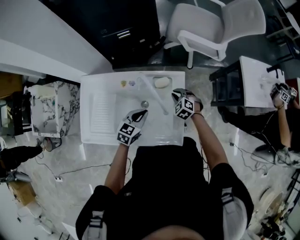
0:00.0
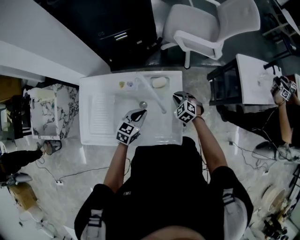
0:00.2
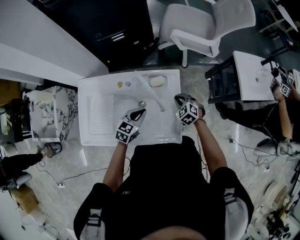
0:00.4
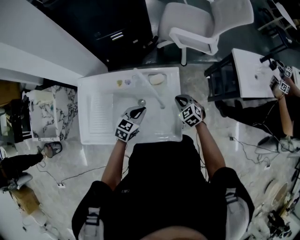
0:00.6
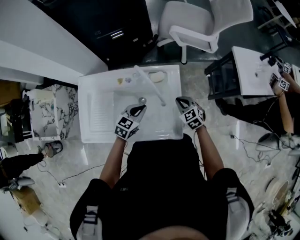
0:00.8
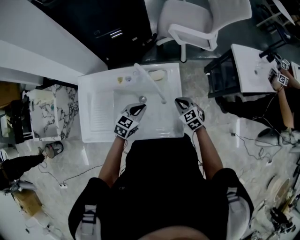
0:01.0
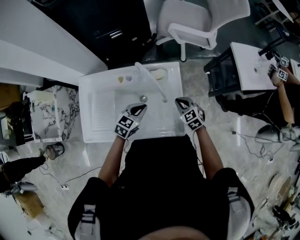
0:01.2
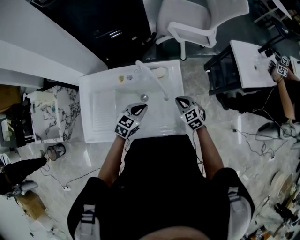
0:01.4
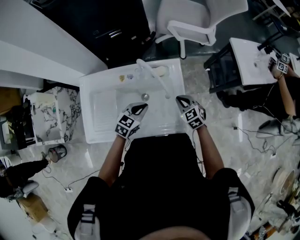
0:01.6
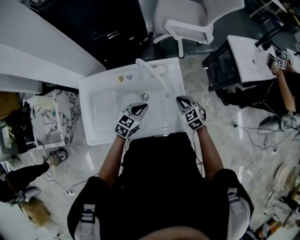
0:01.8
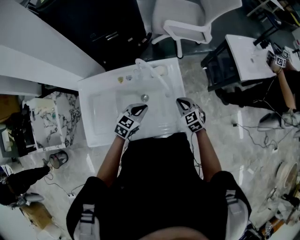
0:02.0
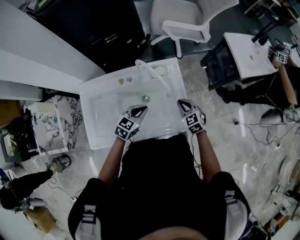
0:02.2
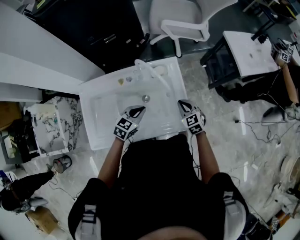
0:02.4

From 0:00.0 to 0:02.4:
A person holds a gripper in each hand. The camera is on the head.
From 0:00.0 to 0:01.2: The right gripper shifts about 10 cm backward and upward, and rotates approximately 30 degrees.
From 0:01.2 to 0:02.4: There are only small adjustments of the grippers.

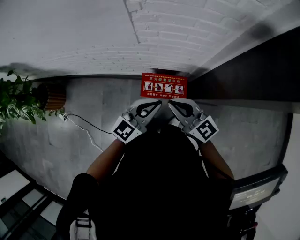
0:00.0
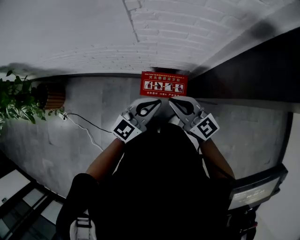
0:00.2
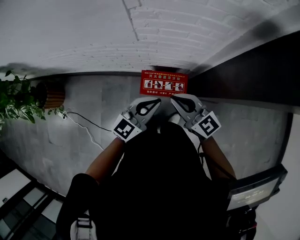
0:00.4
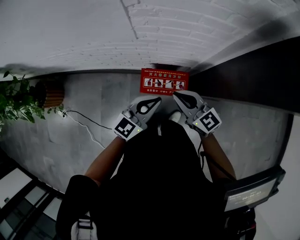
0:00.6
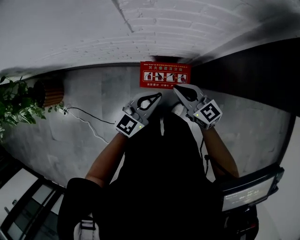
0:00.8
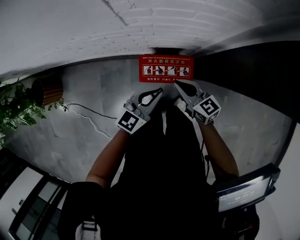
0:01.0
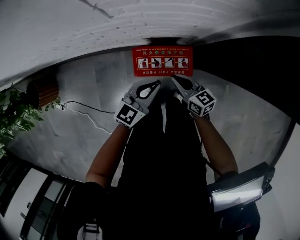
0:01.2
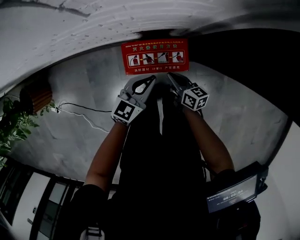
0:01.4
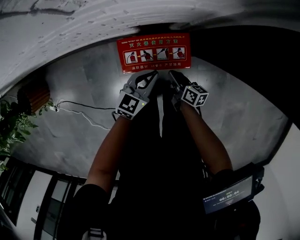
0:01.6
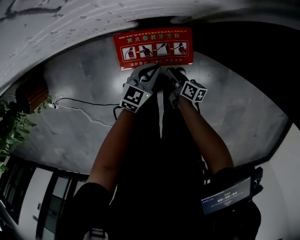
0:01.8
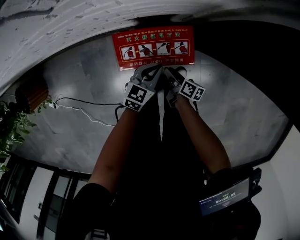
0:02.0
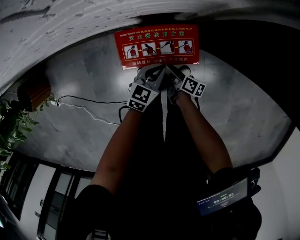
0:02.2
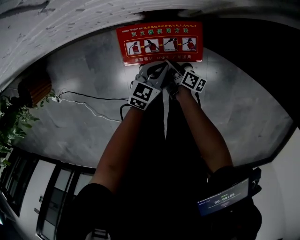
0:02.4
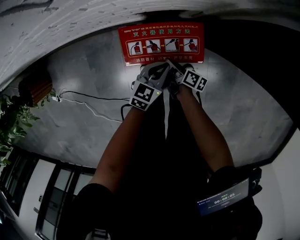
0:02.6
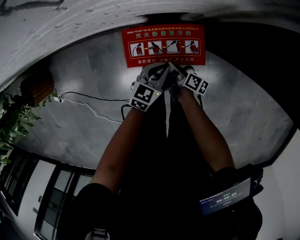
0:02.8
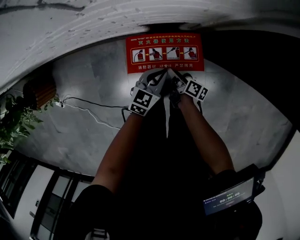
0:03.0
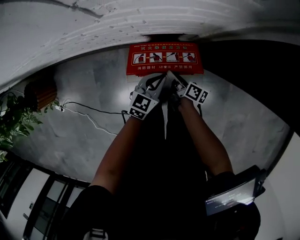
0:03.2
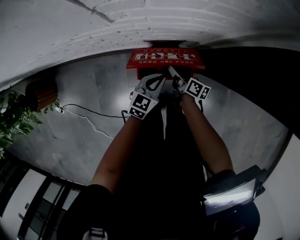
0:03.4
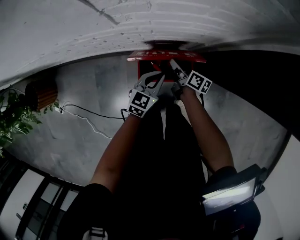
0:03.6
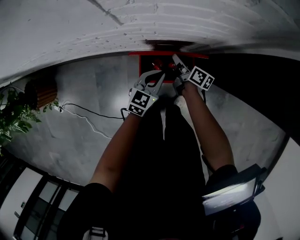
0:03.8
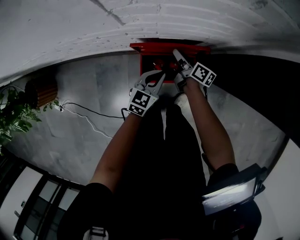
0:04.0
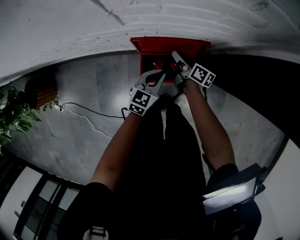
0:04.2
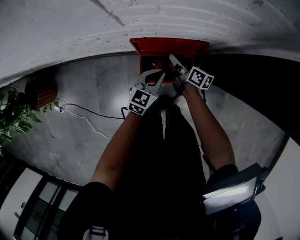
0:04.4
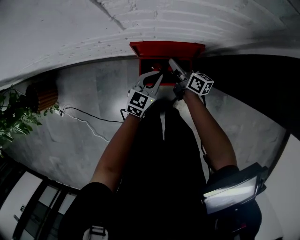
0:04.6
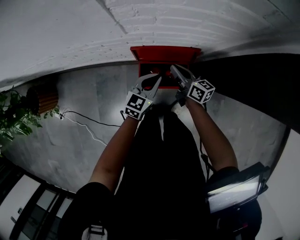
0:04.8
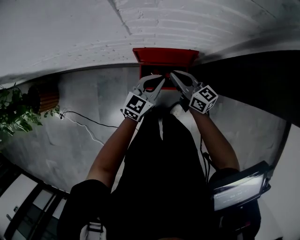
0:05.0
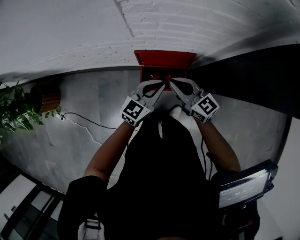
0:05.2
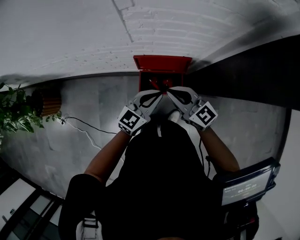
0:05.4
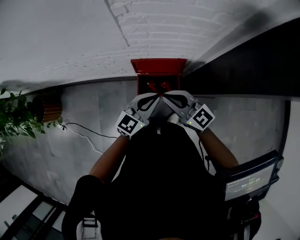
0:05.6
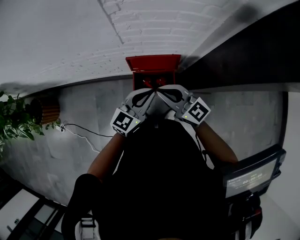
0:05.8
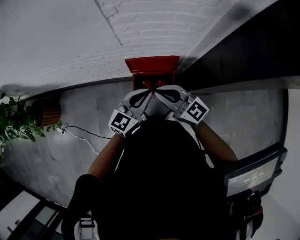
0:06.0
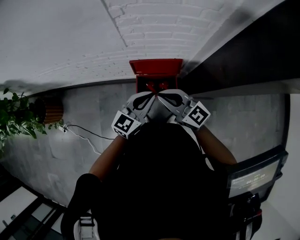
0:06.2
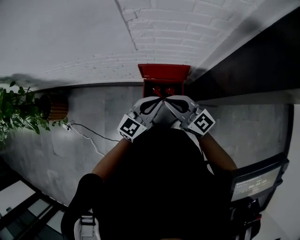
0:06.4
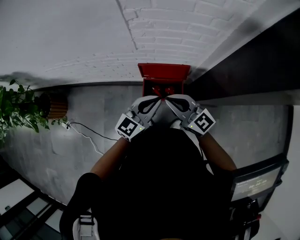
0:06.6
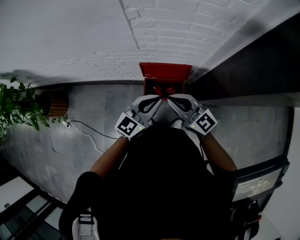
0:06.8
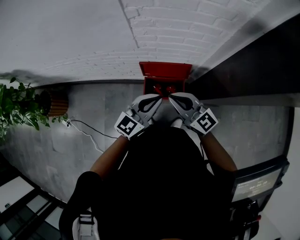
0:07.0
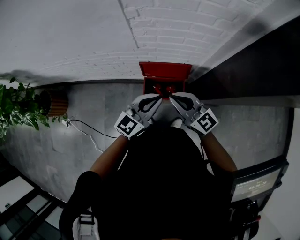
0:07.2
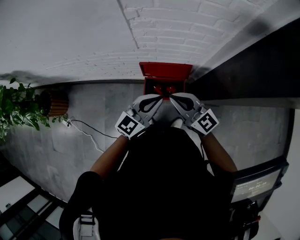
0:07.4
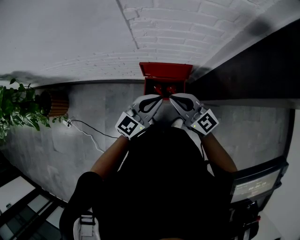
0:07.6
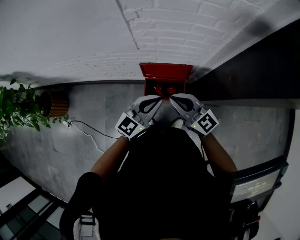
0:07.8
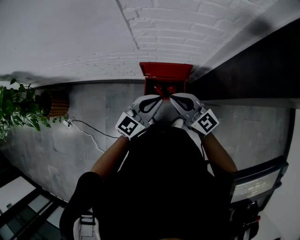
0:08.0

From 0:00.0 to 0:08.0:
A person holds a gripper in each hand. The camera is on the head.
From 0:00.0 to 0:01.6: Both grippers travel together downward, some 40 cm. The right gripper rolls clockwise, seen from behind, by some 60 degrees. Meanwhile the left gripper turns by roughly 20 degrees.
From 0:01.6 to 0:03.2: The right gripper goes downward and returns, approximately 10 cm each way, and opens. Meanwhile the left gripper goes downward and returns, roughly 10 cm each way.
From 0:03.2 to 0:04.8: The right gripper shifts approximately 20 cm upward and forward, rotates some 40 degrees, and closes, while the left gripper moves upward and forward, some 15 cm.
From 0:04.8 to 0:06.4: Both grippers travel together upward and backward, about 30 cm. The right gripper rolls counterclockwise, seen from behind, by some 40 degrees.
From 0:06.4 to 0:08.0: There are only small adjustments of the grippers.

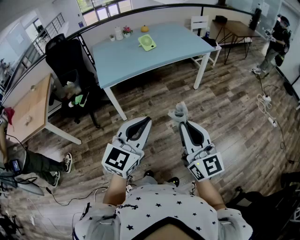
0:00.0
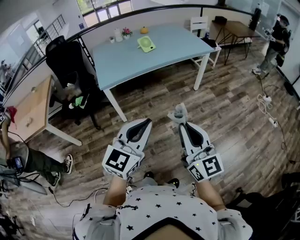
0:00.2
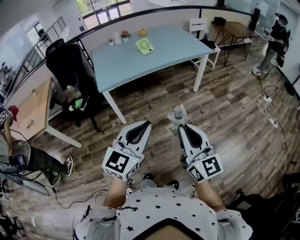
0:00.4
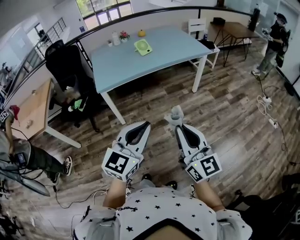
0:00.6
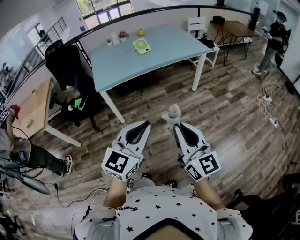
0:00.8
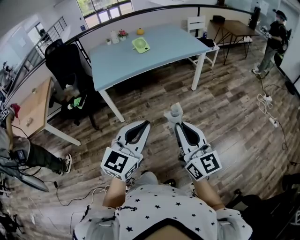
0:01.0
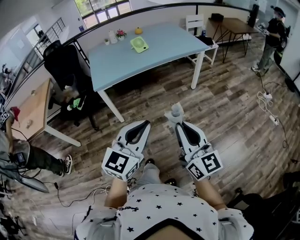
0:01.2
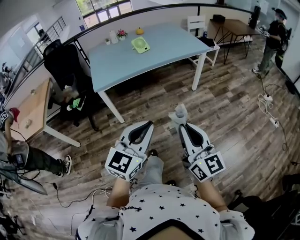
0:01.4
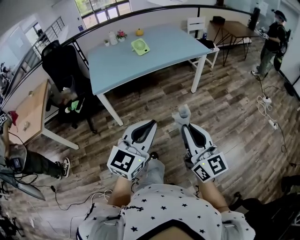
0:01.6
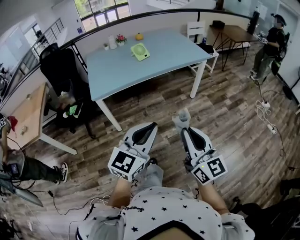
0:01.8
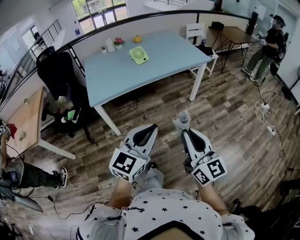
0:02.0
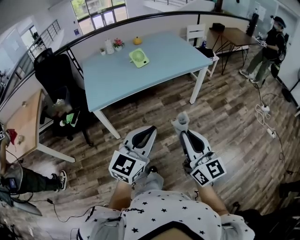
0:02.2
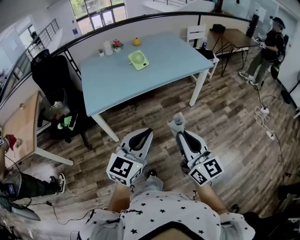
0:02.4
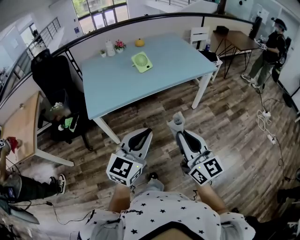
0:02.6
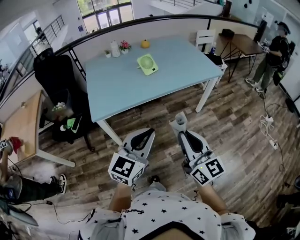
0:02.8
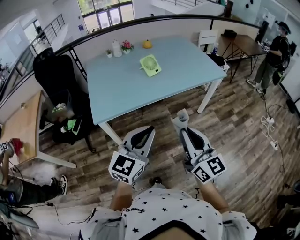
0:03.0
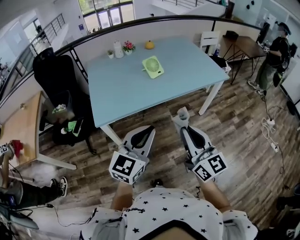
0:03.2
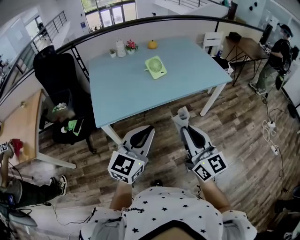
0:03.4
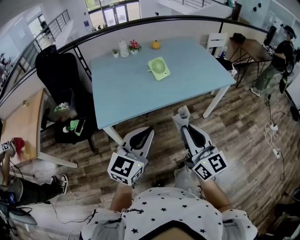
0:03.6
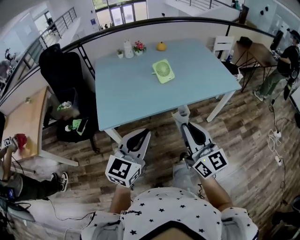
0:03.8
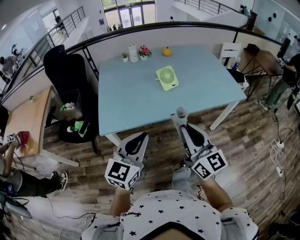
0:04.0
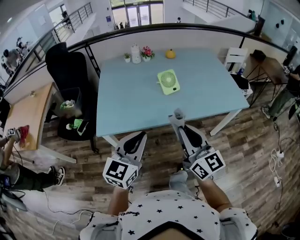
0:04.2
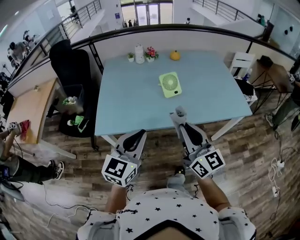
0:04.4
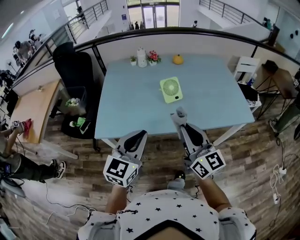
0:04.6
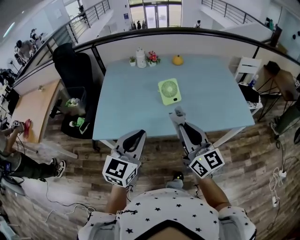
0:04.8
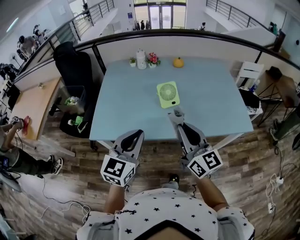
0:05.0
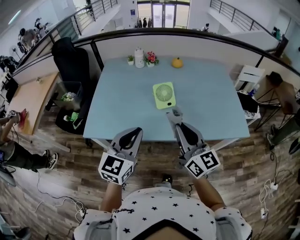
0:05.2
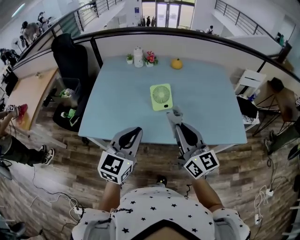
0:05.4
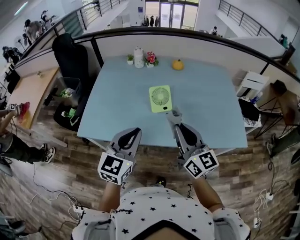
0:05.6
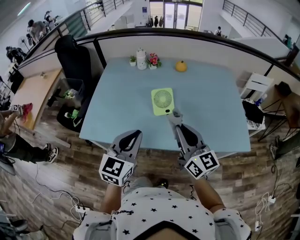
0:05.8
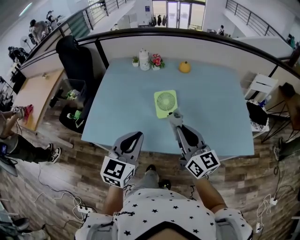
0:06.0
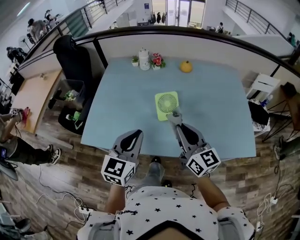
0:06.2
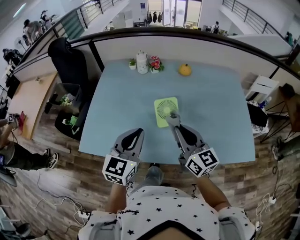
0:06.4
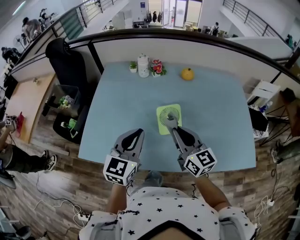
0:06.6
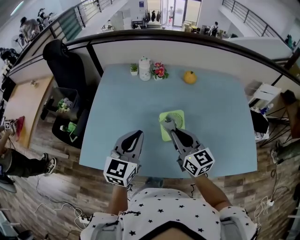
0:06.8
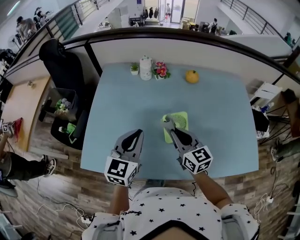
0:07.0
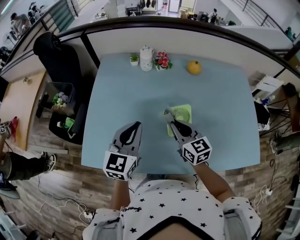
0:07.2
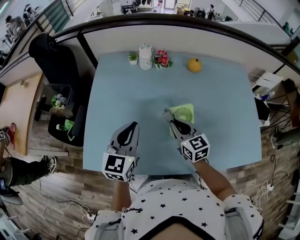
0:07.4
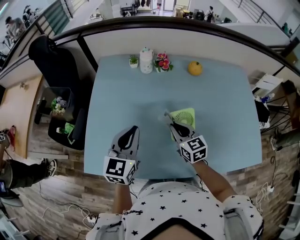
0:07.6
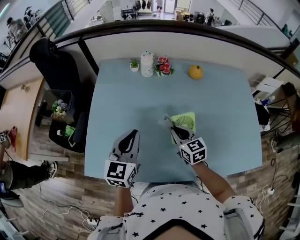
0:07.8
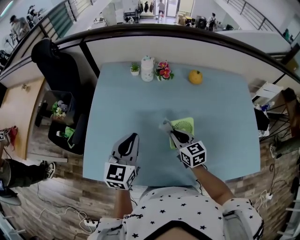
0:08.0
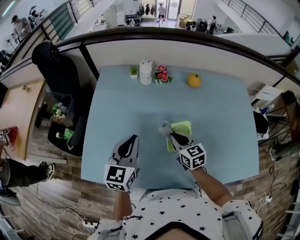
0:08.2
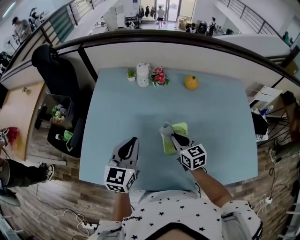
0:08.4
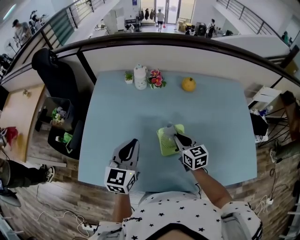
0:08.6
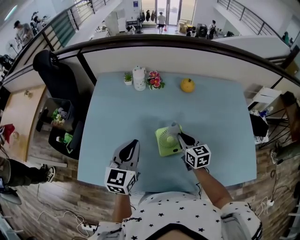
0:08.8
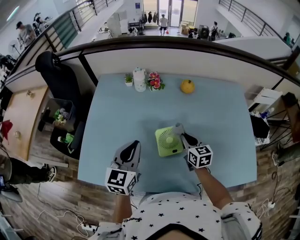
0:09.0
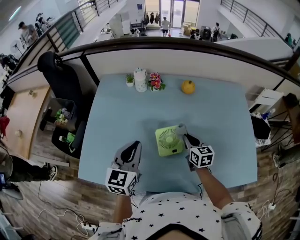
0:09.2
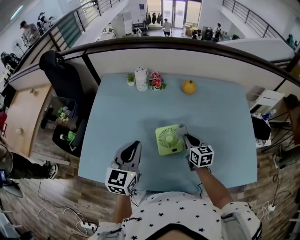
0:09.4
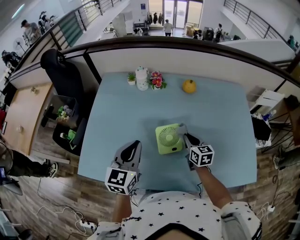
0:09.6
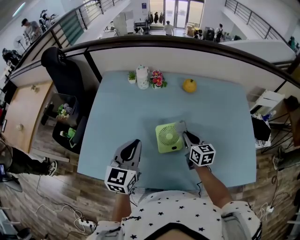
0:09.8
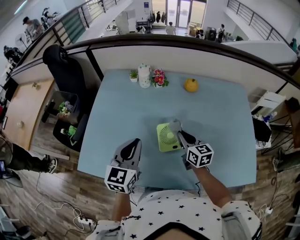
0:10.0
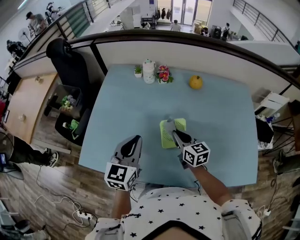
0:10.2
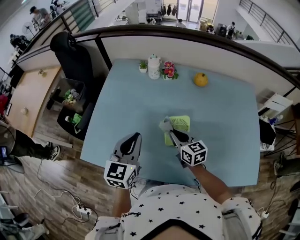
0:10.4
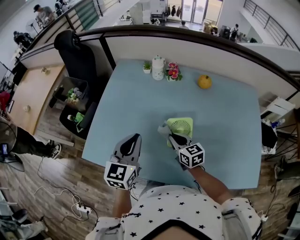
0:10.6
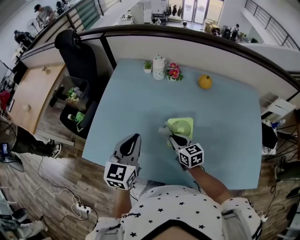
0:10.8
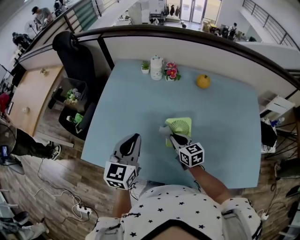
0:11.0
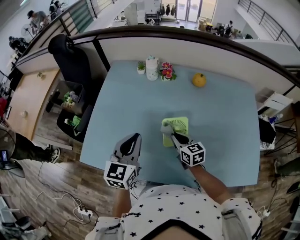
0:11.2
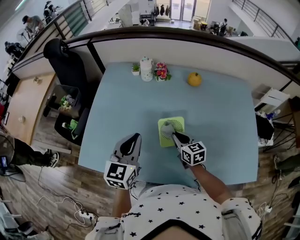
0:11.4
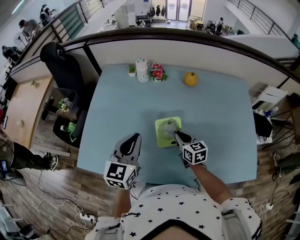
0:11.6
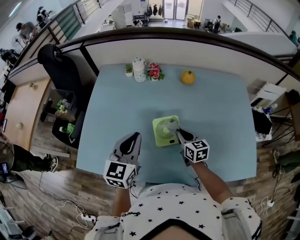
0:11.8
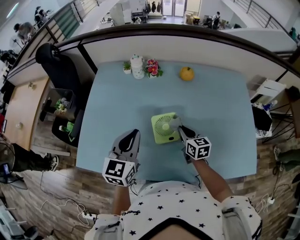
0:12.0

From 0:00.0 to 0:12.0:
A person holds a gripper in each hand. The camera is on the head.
From 0:00.0 to 0:01.6: Both grippers move to the right, approximately 5 cm.
From 0:01.6 to 0:03.0: The grippers both shift forward and to the left by approximately 25 cm.
From 0:03.0 to 0:04.4: Both grippers travel together forward, roughly 20 cm. The left gripper rotates some 20 degrees.
From 0:04.4 to 0:06.0: Both grippers move forward and to the right, roughly 20 cm.
From 0:06.0 to 0:07.6: The left gripper shifts approximately 25 cm forward and to the left. The right gripper moves forward, downward and to the left, approximately 30 cm, and angles its fingers downward, by some 30 degrees.
From 0:07.6 to 0:09.0: The left gripper is displaced to the right by roughly 5 cm; the right gripper goes some 15 cm to the right.
From 0:09.0 to 0:10.4: The right gripper heads to the left, covering some 10 cm.
From 0:10.4 to 0:12.0: The left gripper ends up about 5 cm from where it was. Meanwhile the right gripper heads to the right, covering approximately 10 cm.

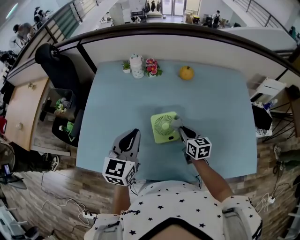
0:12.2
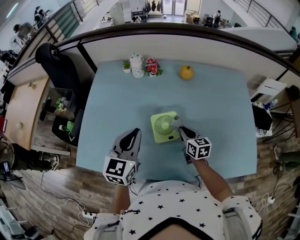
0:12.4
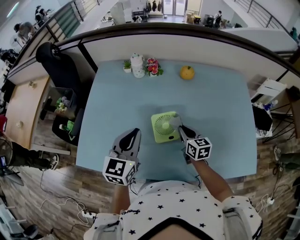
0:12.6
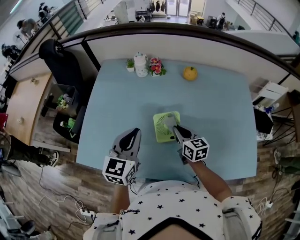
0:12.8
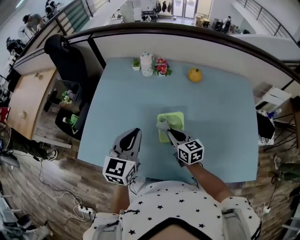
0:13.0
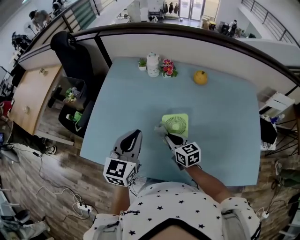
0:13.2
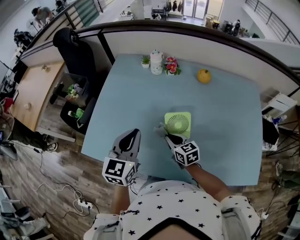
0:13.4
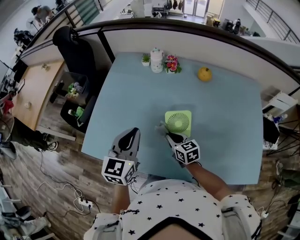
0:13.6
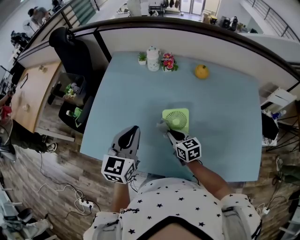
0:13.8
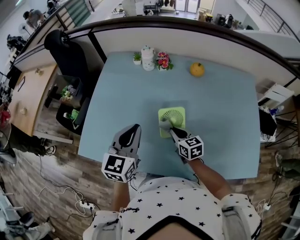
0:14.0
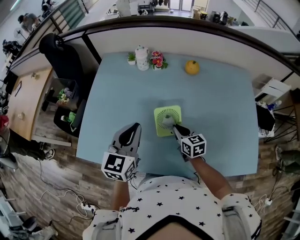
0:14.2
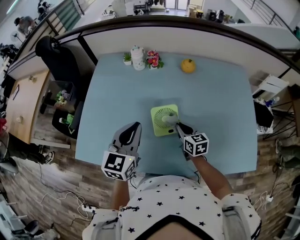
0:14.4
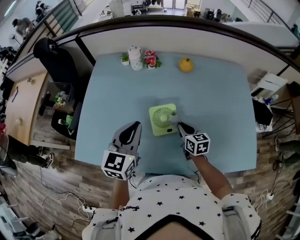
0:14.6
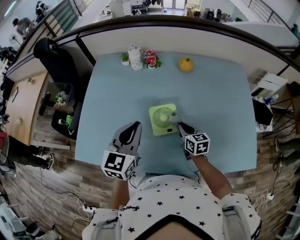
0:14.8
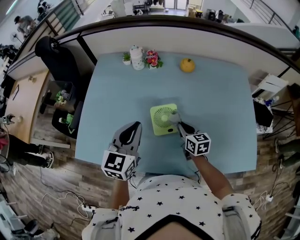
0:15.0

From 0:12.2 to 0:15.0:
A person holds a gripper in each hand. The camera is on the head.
From 0:12.2 to 0:13.6: The left gripper goes some 5 cm to the left. The right gripper goes approximately 15 cm to the left, and rotates roughly 20 degrees.
From 0:13.6 to 0:15.0: The left gripper travels to the right by about 5 cm, while the right gripper moves to the right, roughly 10 cm.
